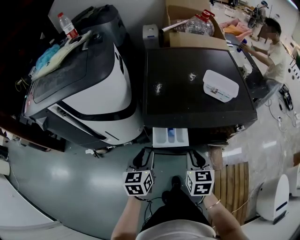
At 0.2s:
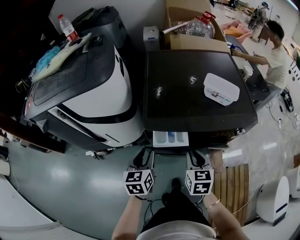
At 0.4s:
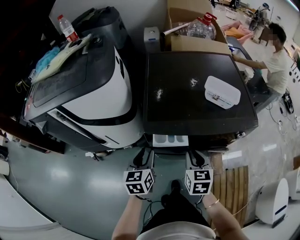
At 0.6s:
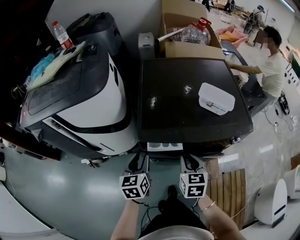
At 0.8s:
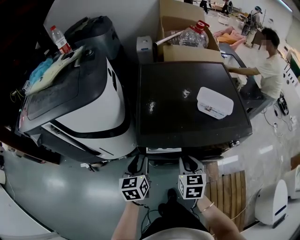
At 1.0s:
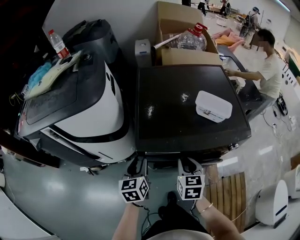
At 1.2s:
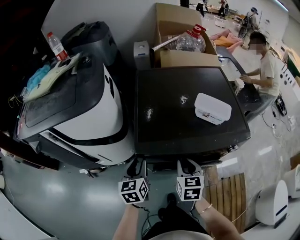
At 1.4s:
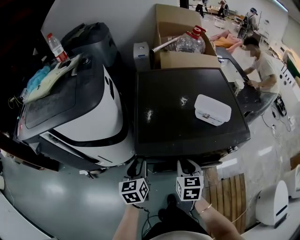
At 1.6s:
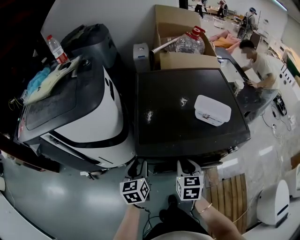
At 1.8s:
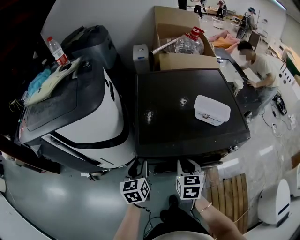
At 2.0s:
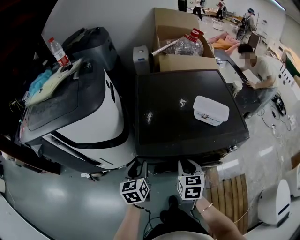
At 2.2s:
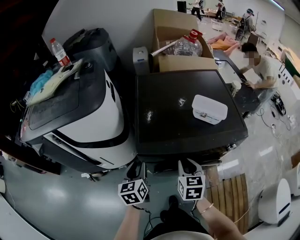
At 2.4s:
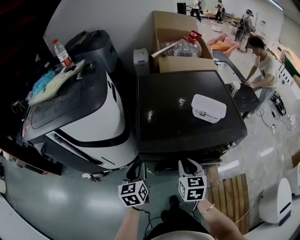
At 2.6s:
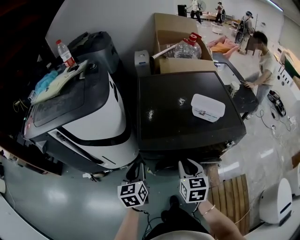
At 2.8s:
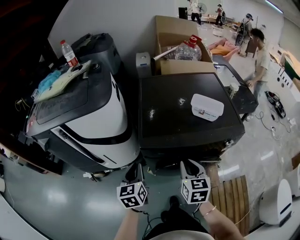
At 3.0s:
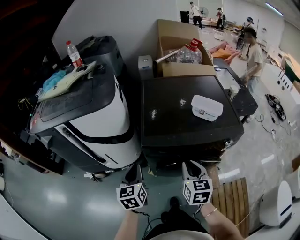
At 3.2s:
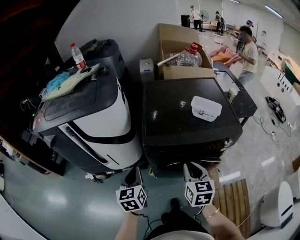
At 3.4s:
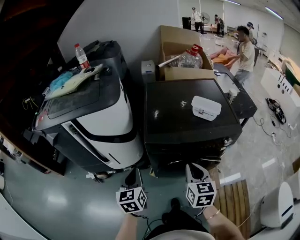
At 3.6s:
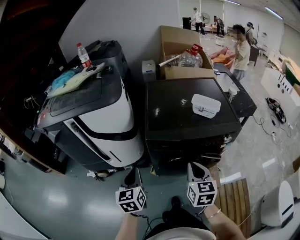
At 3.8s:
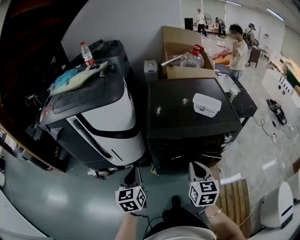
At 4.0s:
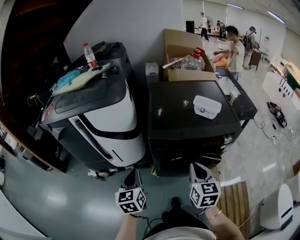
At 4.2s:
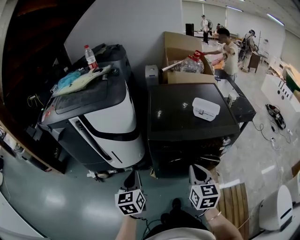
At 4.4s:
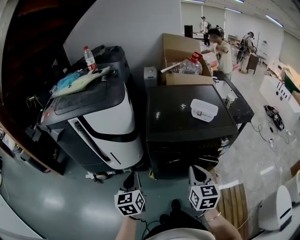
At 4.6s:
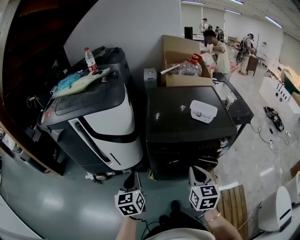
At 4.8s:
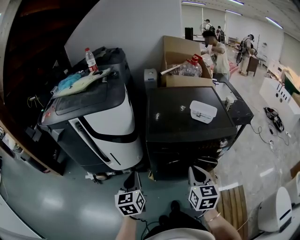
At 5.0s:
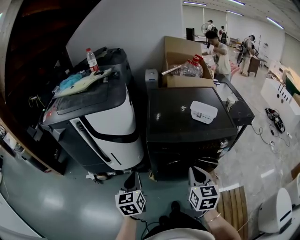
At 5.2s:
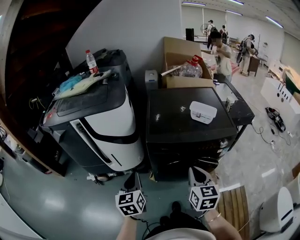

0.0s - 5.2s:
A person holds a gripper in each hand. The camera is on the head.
0.0s - 1.8s: The two grippers go some 10 cm forward.
1.8s - 3.4s: The grippers both shift backward and upward by some 15 cm. The left gripper closes up.
3.4s - 5.2s: Both grippers travel together backward, approximately 5 cm.

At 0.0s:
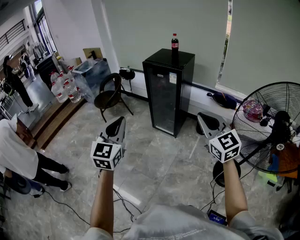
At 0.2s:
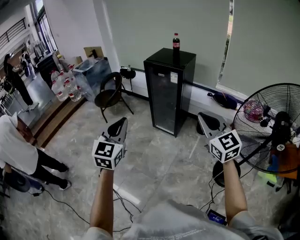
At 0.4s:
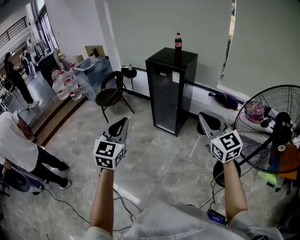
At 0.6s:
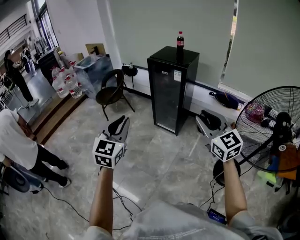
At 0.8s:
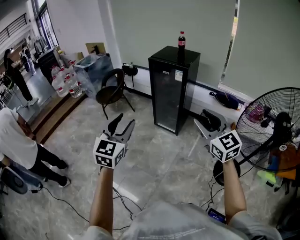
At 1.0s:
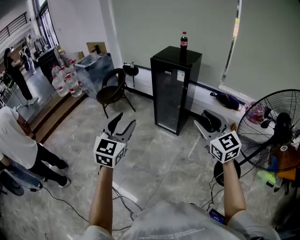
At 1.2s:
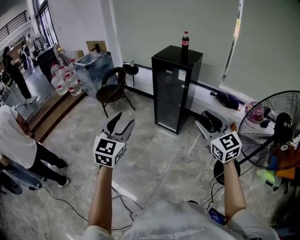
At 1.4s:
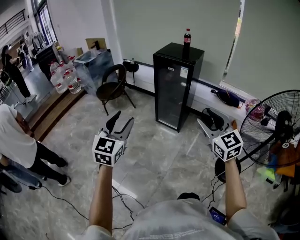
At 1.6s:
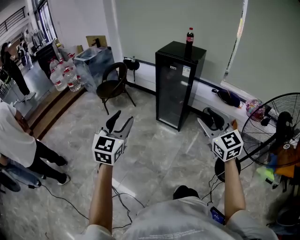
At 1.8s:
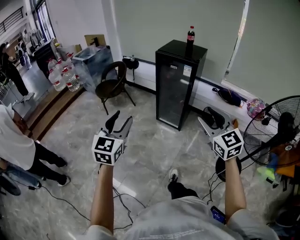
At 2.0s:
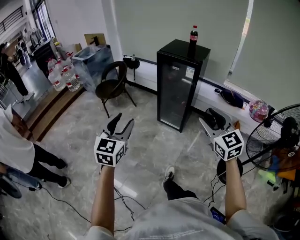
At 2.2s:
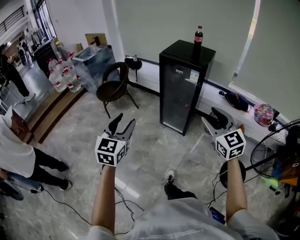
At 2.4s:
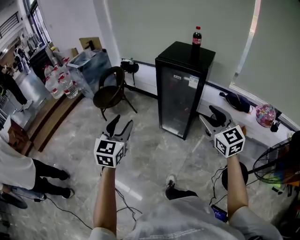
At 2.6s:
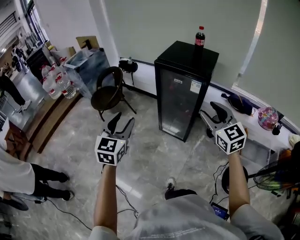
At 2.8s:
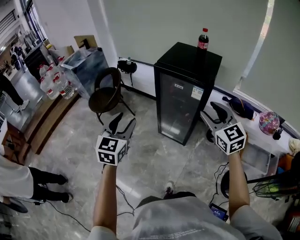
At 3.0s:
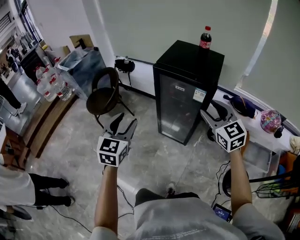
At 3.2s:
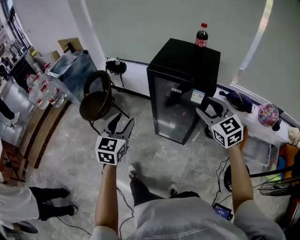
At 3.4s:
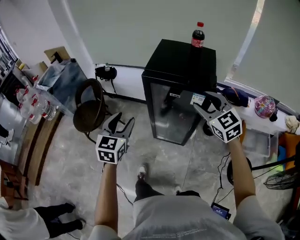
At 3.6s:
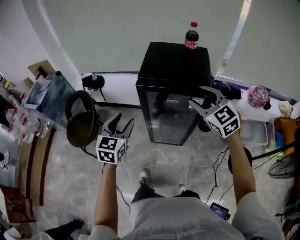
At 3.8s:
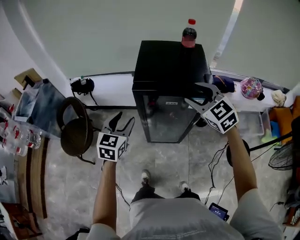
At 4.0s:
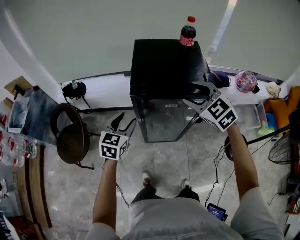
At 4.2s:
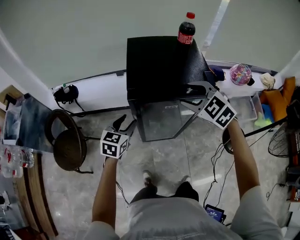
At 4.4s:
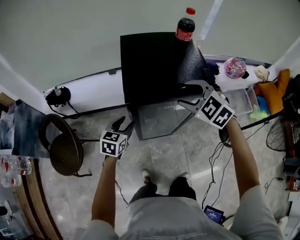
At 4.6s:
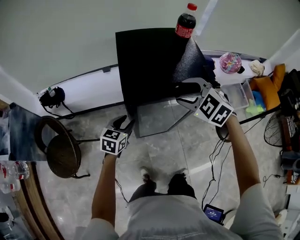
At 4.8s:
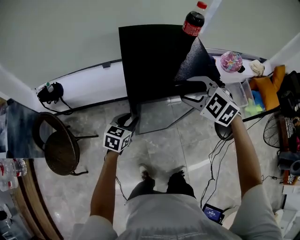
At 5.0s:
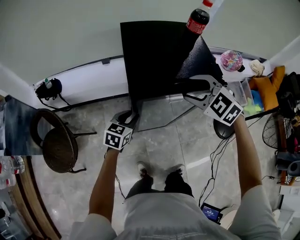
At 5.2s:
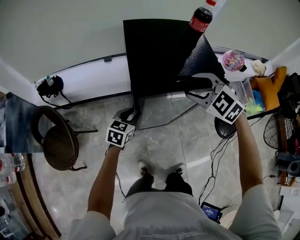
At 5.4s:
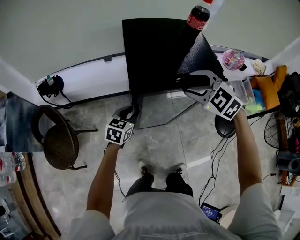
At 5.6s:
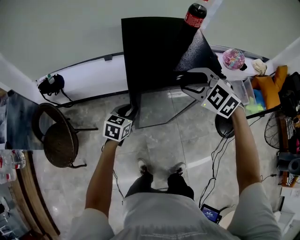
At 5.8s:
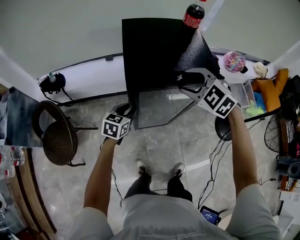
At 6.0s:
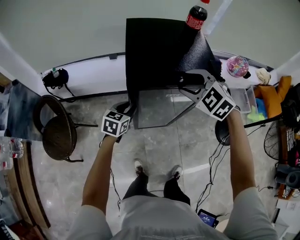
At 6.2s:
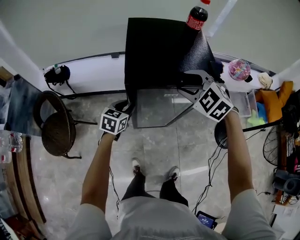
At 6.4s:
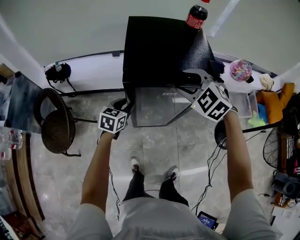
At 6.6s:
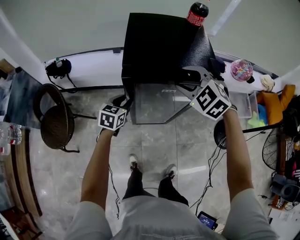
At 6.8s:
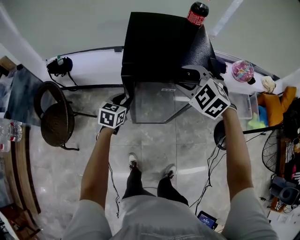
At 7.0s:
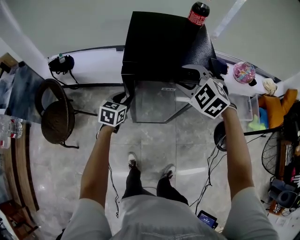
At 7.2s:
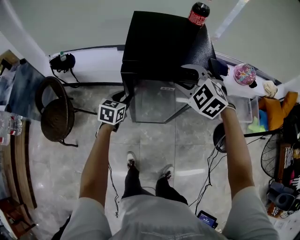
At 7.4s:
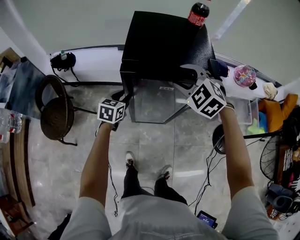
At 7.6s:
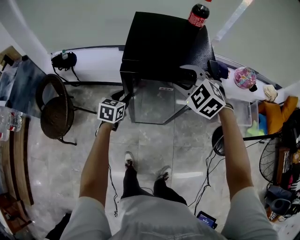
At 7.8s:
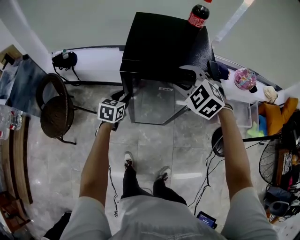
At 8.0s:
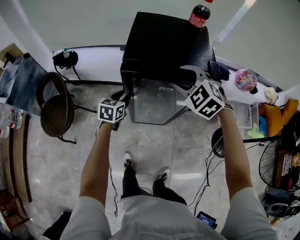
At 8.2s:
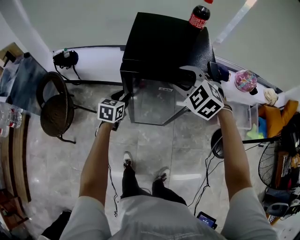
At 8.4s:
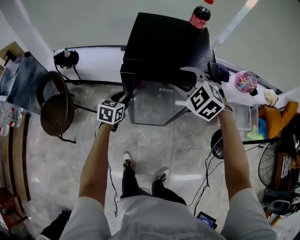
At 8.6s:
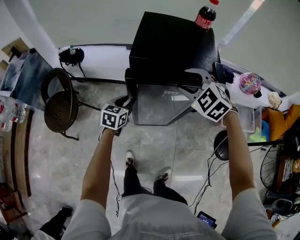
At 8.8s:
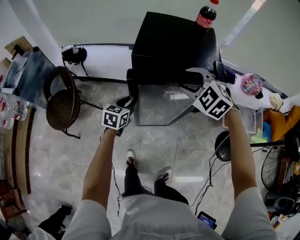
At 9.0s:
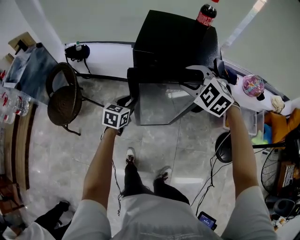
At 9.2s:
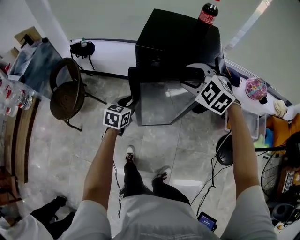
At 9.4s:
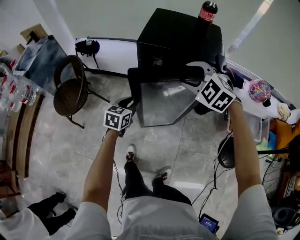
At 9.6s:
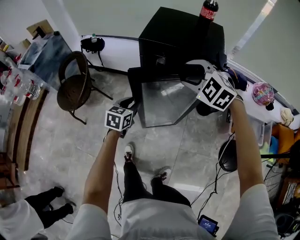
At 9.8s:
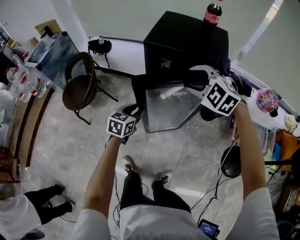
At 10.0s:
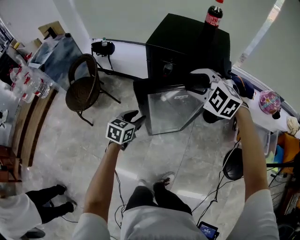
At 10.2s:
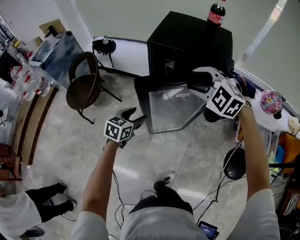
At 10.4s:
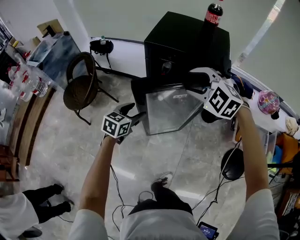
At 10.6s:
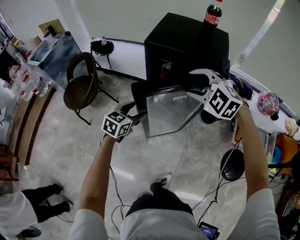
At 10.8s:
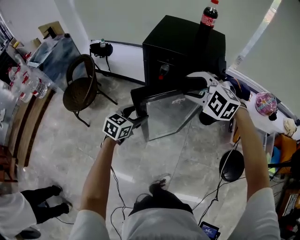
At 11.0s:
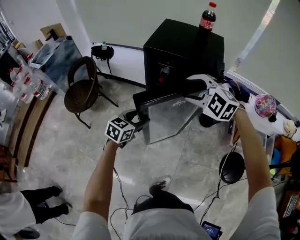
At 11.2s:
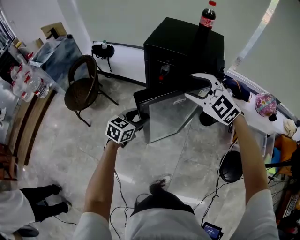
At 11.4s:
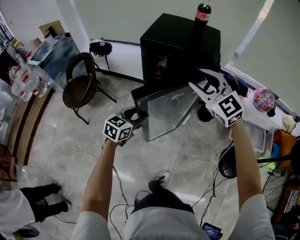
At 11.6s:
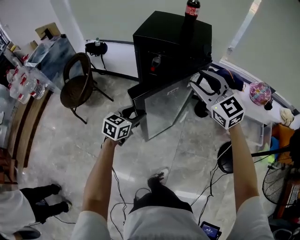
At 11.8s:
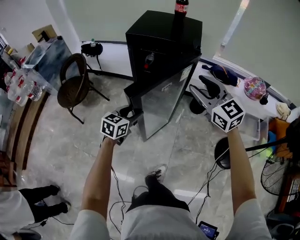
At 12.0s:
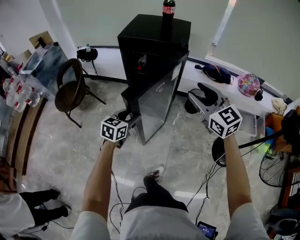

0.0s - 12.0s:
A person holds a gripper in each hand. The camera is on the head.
0.0s - 1.6s: The grippers both shift to the left by roughly 10 cm. The left gripper opens up. The right gripper opens its fingers.
1.6s - 3.0s: The two grippers travel together, forward, about 40 cm.
3.0s - 4.4s: The left gripper changes place by approximately 40 cm, and swivels about 50 degrees. The right gripper shifts by approximately 25 cm, and swivels some 40 degrees.
4.4s - 6.0s: The left gripper closes up.
6.0s - 7.6s: The grippers stay close to where they were, moving slightly.
7.6s - 9.0s: The left gripper goes approximately 5 cm backward.
9.0s - 10.4s: The left gripper is displaced backward by about 10 cm, and opens up. The right gripper moves backward, approximately 5 cm.
10.4s - 12.0s: The two grippers go roughly 20 cm backward and to the right. The right gripper tips its fingers upward by some 30 degrees.

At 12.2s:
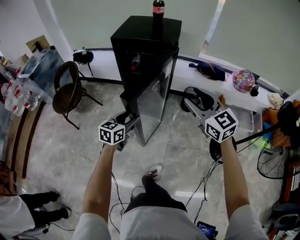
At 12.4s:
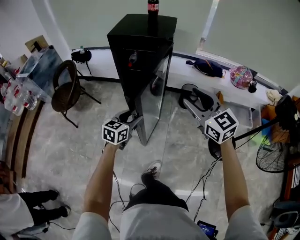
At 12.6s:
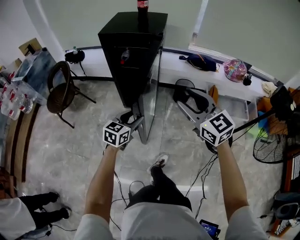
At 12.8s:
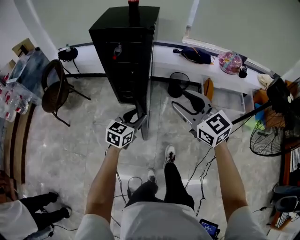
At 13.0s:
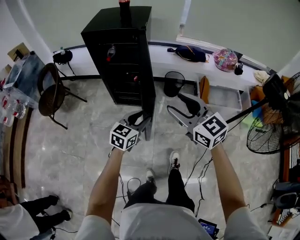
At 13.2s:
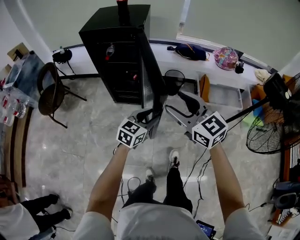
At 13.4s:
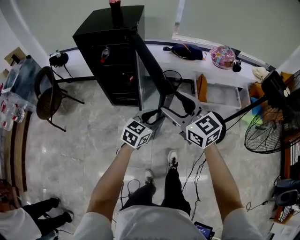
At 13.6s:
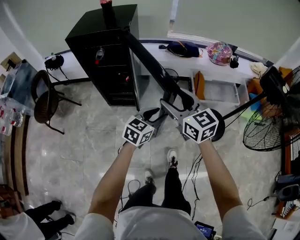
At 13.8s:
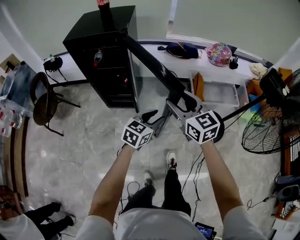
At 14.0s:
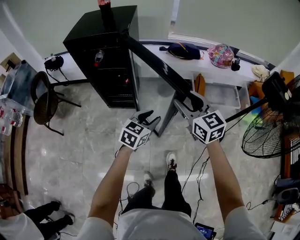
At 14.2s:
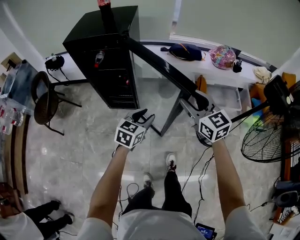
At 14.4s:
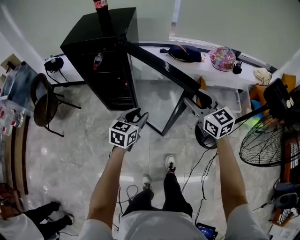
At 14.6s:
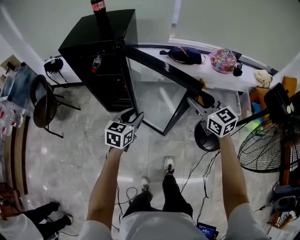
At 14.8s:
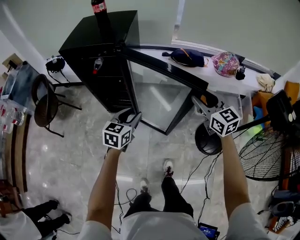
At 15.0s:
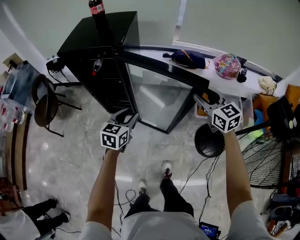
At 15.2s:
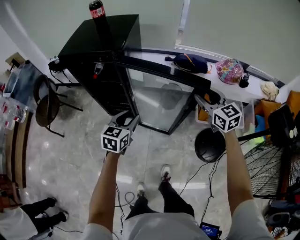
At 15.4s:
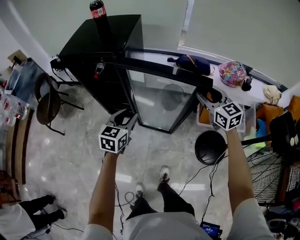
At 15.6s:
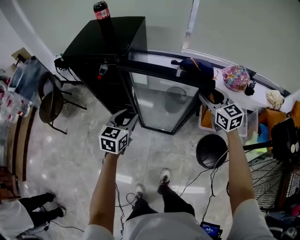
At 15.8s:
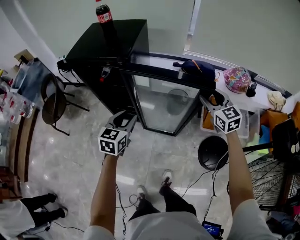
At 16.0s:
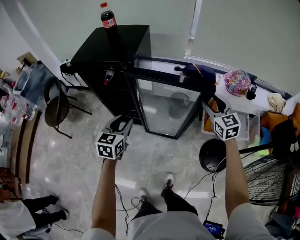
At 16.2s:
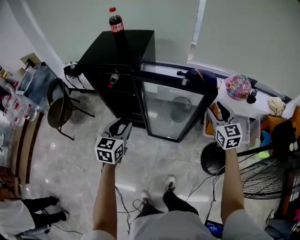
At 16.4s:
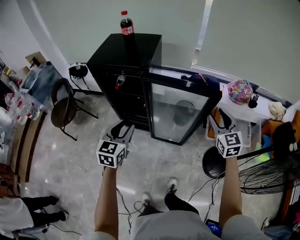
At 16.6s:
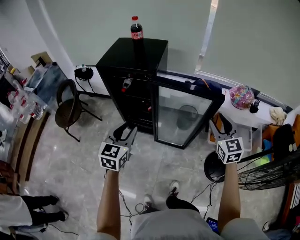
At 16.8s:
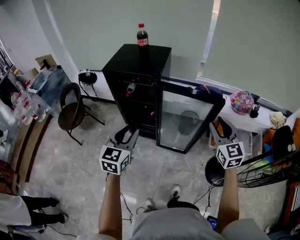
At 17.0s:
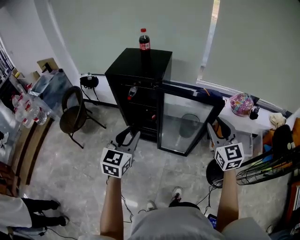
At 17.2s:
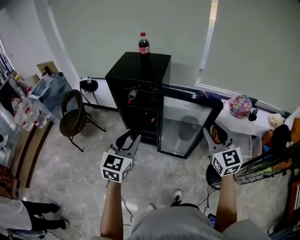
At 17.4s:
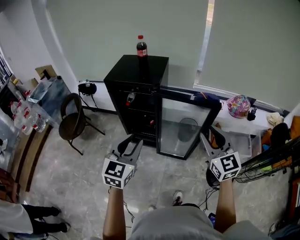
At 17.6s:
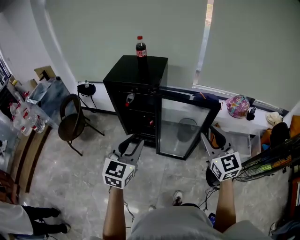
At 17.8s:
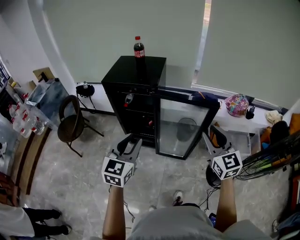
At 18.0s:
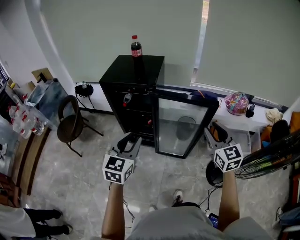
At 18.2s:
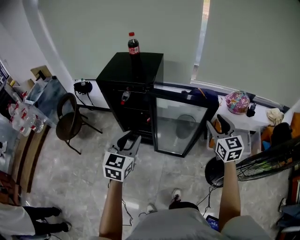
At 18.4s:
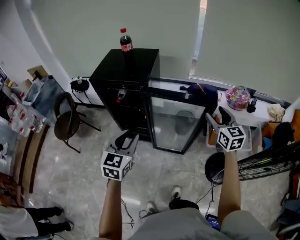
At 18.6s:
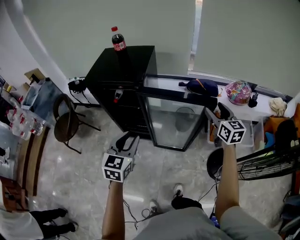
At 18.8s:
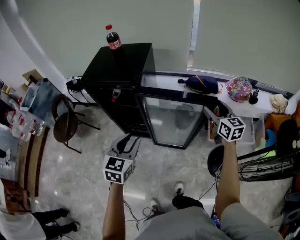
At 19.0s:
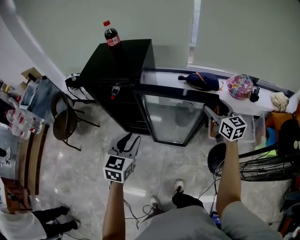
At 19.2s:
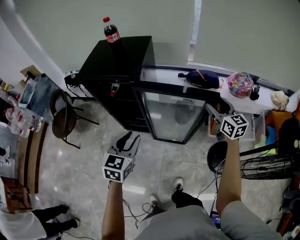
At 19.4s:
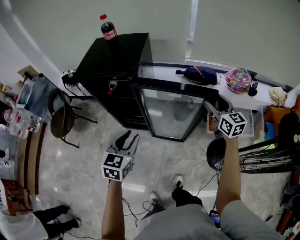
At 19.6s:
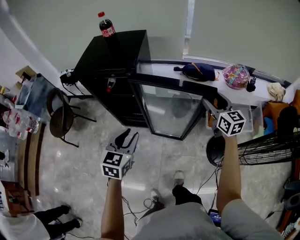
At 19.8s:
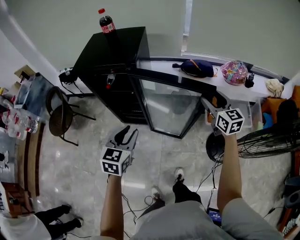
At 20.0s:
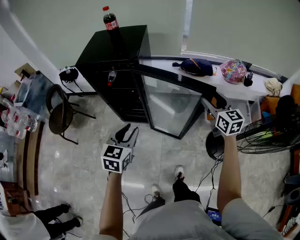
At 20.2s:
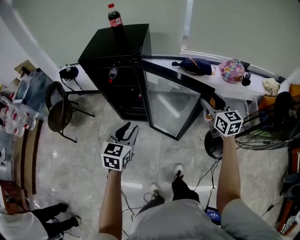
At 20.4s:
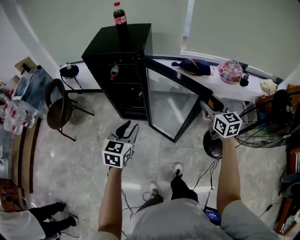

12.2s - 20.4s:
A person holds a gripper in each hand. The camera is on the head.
12.2s - 13.8s: The right gripper moves to the right and downward, approximately 15 cm; the left gripper moves to the right, approximately 30 cm, and turns by roughly 20 degrees.
13.8s - 15.4s: The right gripper heads forward and to the right, covering approximately 30 cm; the left gripper shifts some 20 cm forward and to the left, and turns by about 30 degrees.
15.4s - 17.2s: The left gripper shifts roughly 25 cm upward, backward and to the left, and changes its angle by roughly 20 degrees; the right gripper heads backward, upward and to the left, covering about 25 cm.
17.2s - 18.8s: The left gripper travels forward, downward and to the right by some 15 cm. The right gripper travels forward, to the right and downward by about 25 cm, swivels some 20 degrees, and opens up.
18.8s - 20.4s: The right gripper shifts some 15 cm backward. Meanwhile the left gripper is displaced backward by approximately 10 cm.
